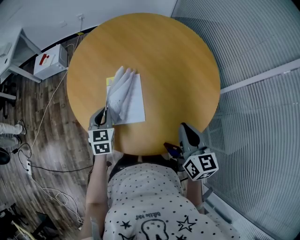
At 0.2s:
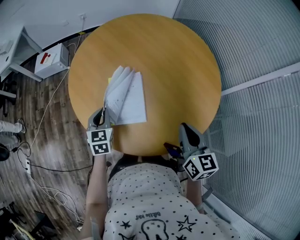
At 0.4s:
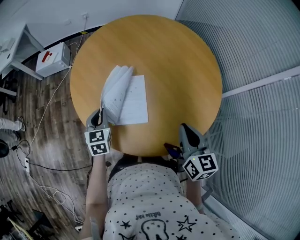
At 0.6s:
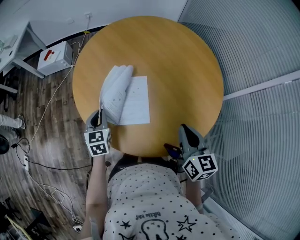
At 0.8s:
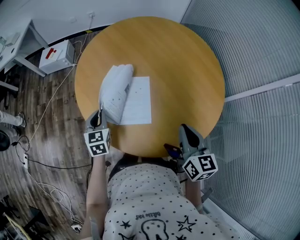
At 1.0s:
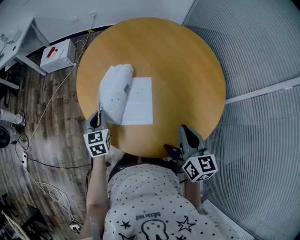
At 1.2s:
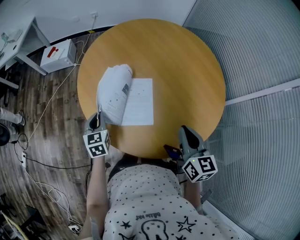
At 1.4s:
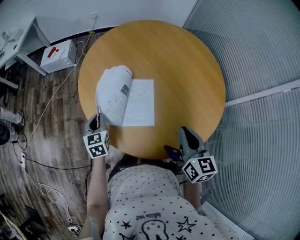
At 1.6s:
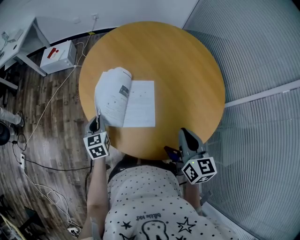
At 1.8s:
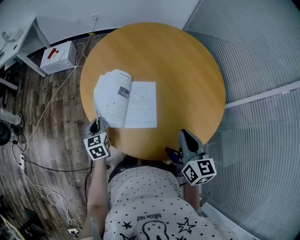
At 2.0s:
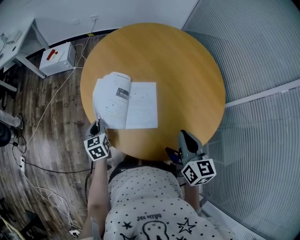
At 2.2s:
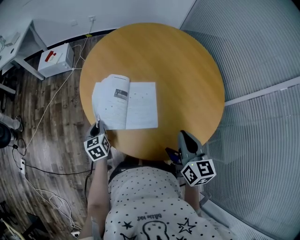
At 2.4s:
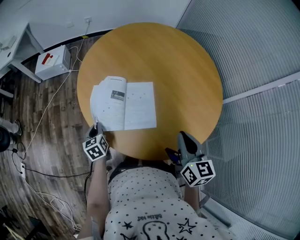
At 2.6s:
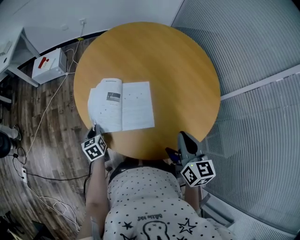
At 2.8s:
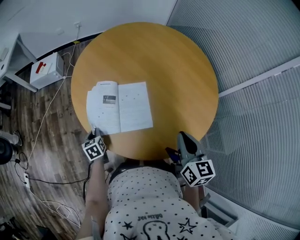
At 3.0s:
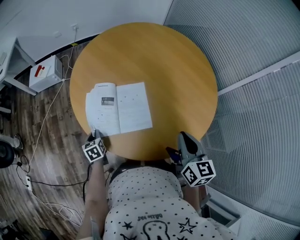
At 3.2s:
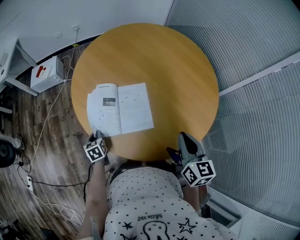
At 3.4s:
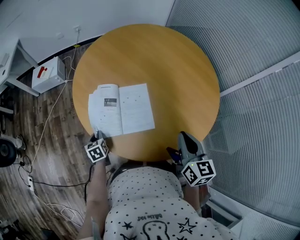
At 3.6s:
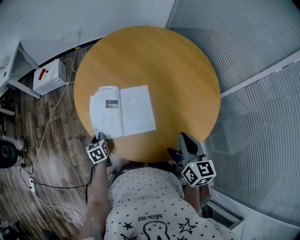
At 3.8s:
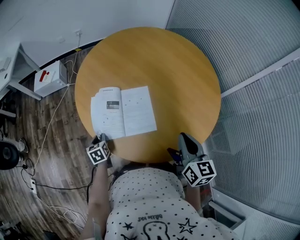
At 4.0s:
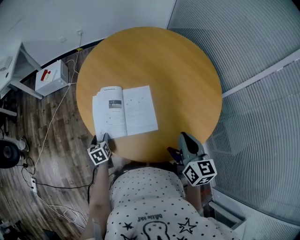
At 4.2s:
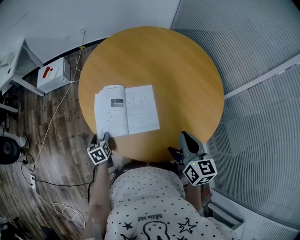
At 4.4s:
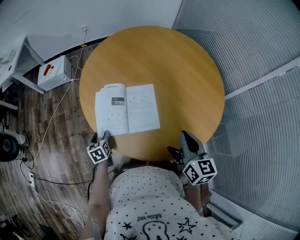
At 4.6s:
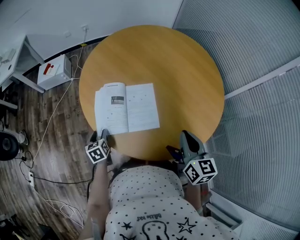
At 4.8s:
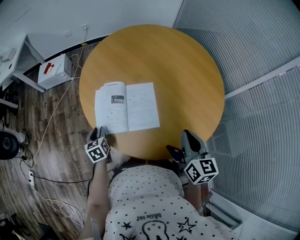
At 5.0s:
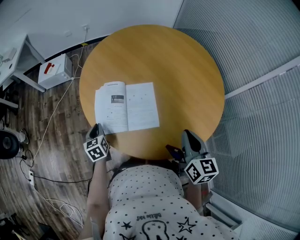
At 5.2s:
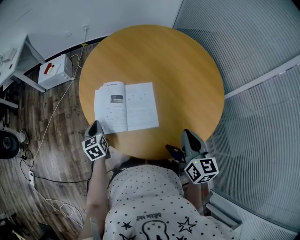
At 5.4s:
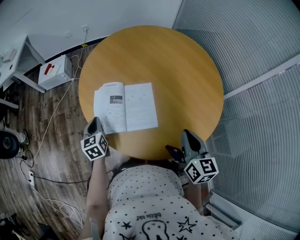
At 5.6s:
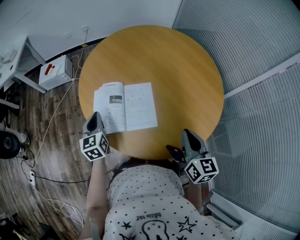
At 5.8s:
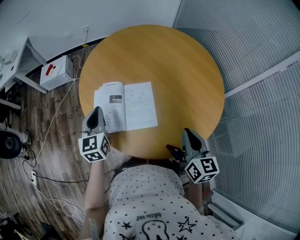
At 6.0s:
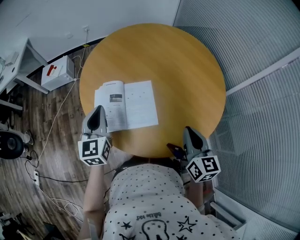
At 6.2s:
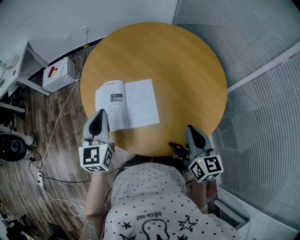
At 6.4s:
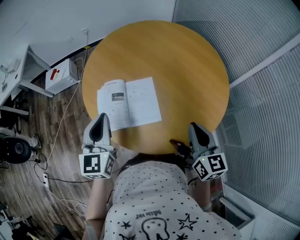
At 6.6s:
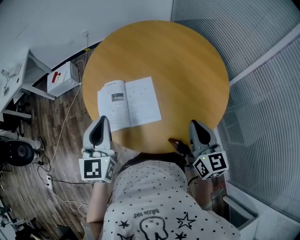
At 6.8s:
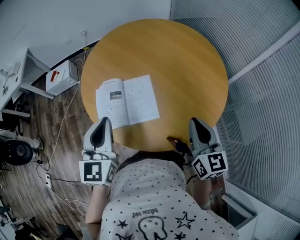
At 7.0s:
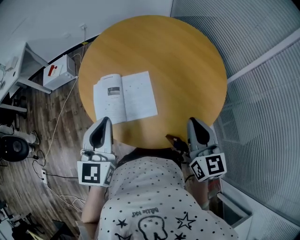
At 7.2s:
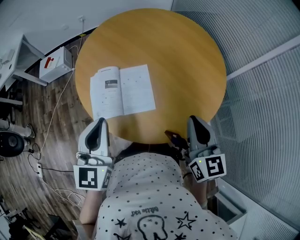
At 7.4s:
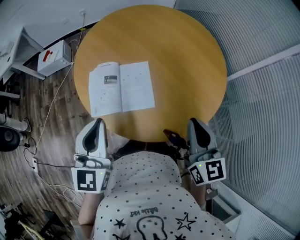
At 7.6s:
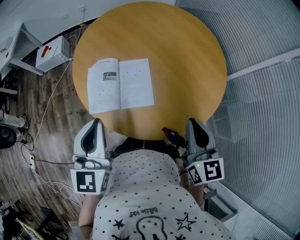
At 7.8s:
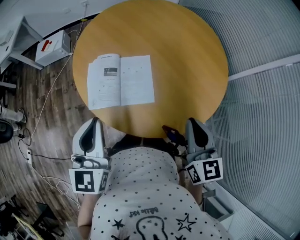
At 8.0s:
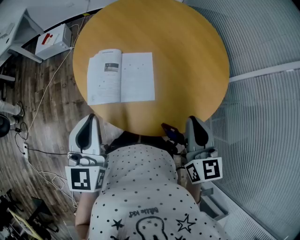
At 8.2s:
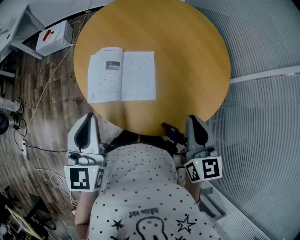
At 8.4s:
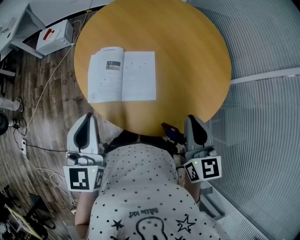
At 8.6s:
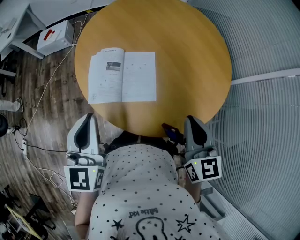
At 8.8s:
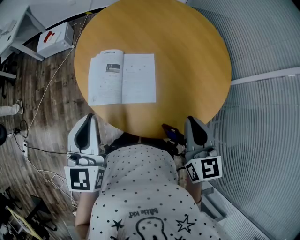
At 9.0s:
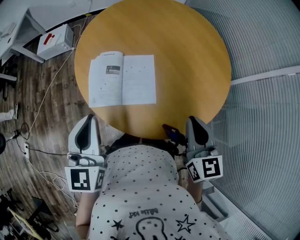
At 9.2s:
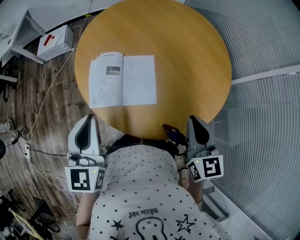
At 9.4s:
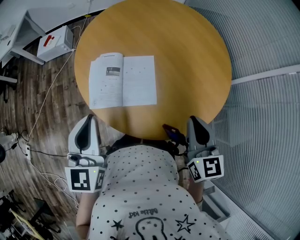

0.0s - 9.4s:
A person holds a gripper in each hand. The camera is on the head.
0.0s - 1.6s: The right gripper travels to the left by some 5 cm. The left gripper moves to the left, approximately 10 cm.
1.6s - 3.2s: The left gripper travels downward by roughly 10 cm.
3.2s - 4.8s: The left gripper opens up.
4.8s - 6.2s: The left gripper heads upward and to the right, covering roughly 25 cm, points its fingers roughly 30 degrees further upward, and closes.
6.2s - 7.8s: The right gripper changes place by approximately 5 cm; the left gripper heads backward and upward, covering some 10 cm.
7.8s - 9.4s: There are only small adjustments of the grippers.

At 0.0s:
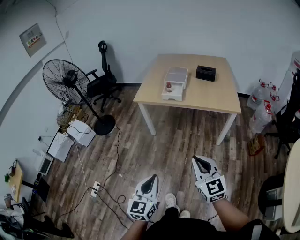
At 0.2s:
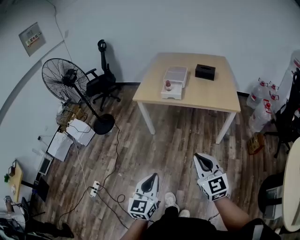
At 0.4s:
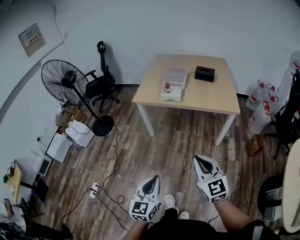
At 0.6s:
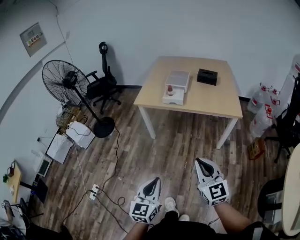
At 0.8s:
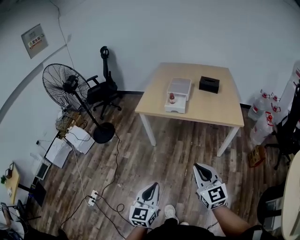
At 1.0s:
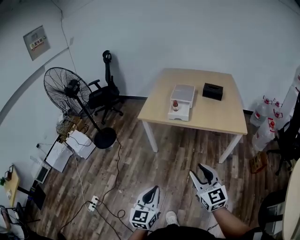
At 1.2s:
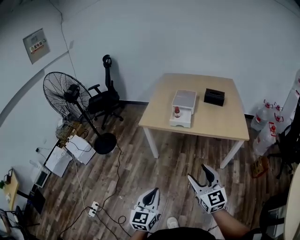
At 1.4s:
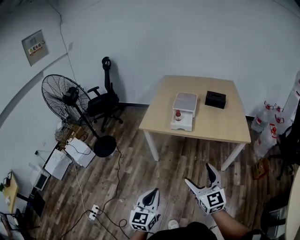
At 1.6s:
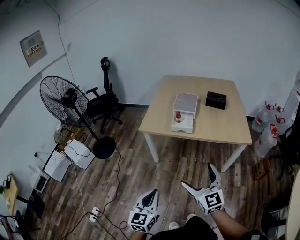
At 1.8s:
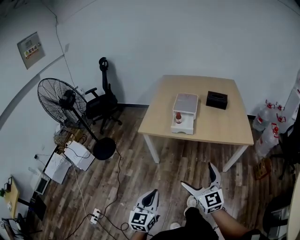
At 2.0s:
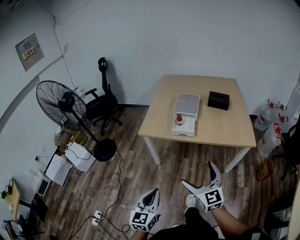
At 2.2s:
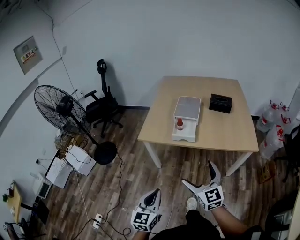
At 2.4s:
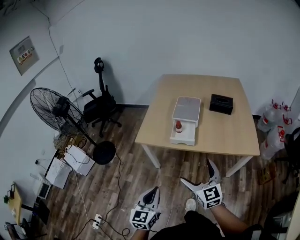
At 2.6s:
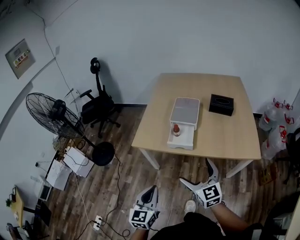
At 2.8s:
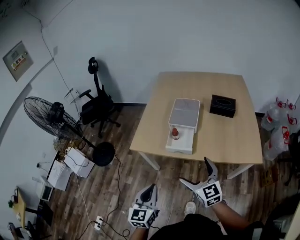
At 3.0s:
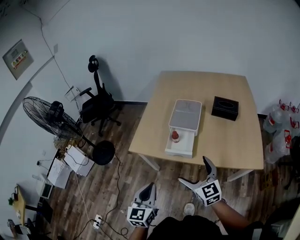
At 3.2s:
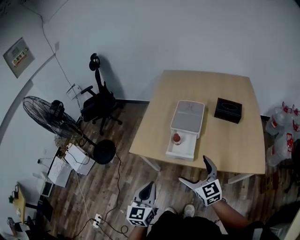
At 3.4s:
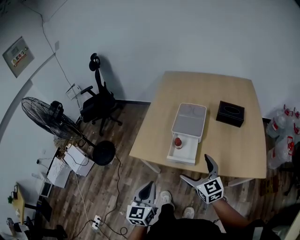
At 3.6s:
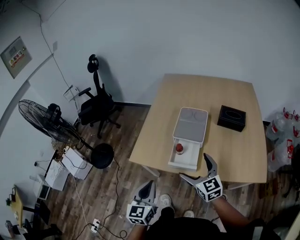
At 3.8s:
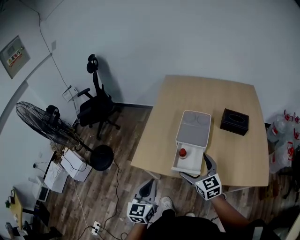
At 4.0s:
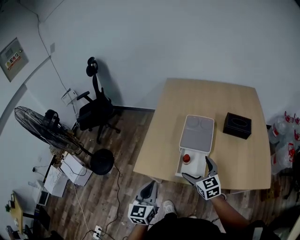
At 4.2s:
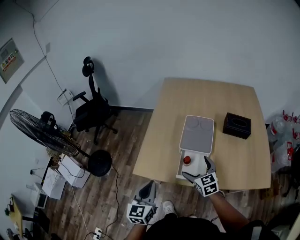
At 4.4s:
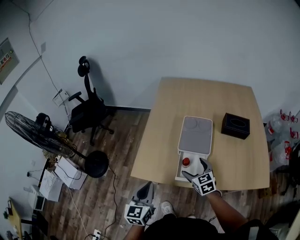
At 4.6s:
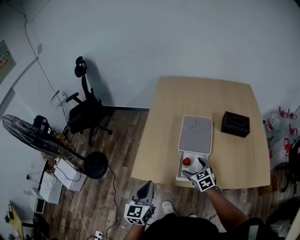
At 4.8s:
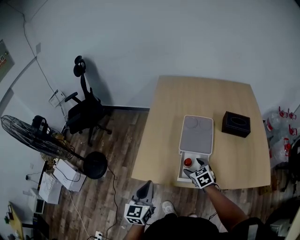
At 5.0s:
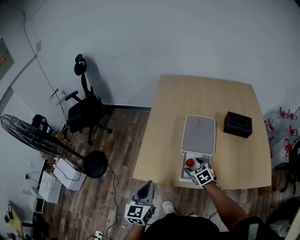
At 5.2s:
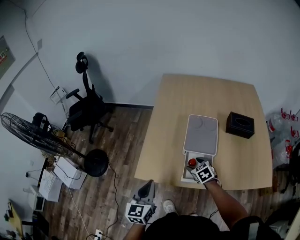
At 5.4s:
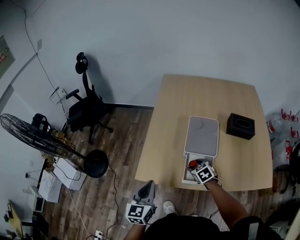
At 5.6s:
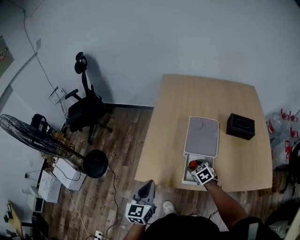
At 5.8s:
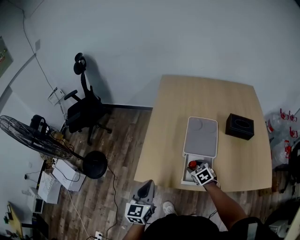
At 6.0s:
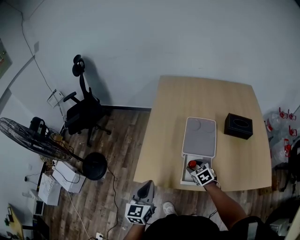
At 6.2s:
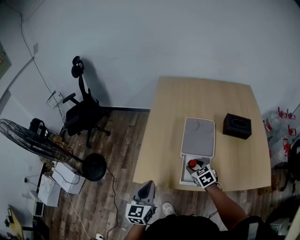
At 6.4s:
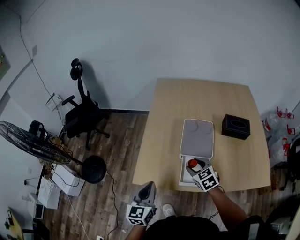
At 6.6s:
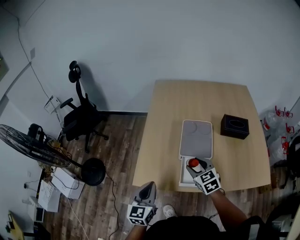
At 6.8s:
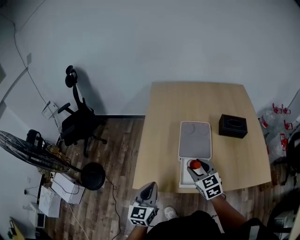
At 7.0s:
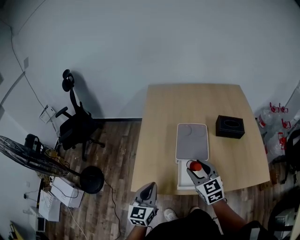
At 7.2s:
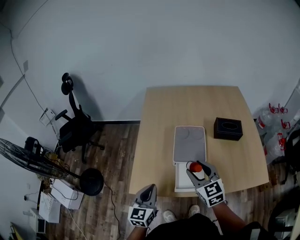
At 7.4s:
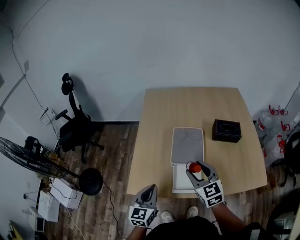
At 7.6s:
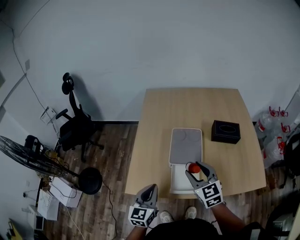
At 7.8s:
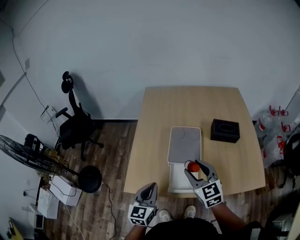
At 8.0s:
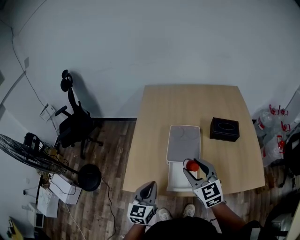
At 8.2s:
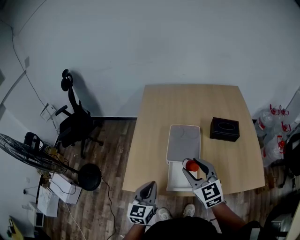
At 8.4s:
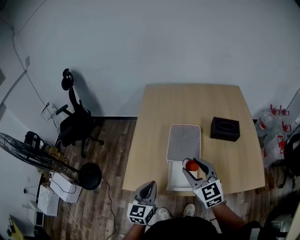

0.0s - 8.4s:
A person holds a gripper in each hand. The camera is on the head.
0.0s - 1.4s: Both grippers move forward, approximately 15 cm. The right gripper opens its fingers.
1.4s - 2.8s: Both grippers travel together forward, about 30 cm.
2.8s - 4.2s: Both grippers move forward, approximately 25 cm.
4.2s - 5.6s: The left gripper heads forward, covering roughly 5 cm. The right gripper shifts roughly 15 cm downward and forward, swivels some 30 degrees, and closes.
5.6s - 7.0s: The right gripper travels upward by some 20 cm, and tips its fingers upward by some 30 degrees.
7.0s - 8.4s: The right gripper is displaced upward by roughly 5 cm. The left gripper shifts roughly 5 cm to the right.

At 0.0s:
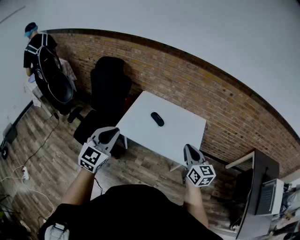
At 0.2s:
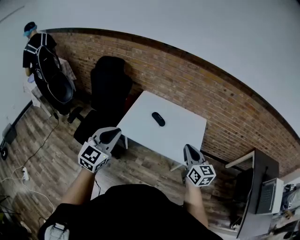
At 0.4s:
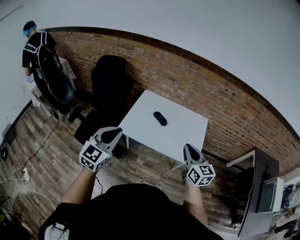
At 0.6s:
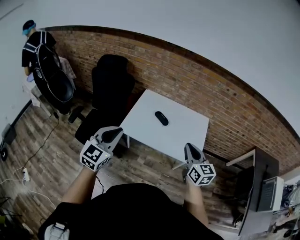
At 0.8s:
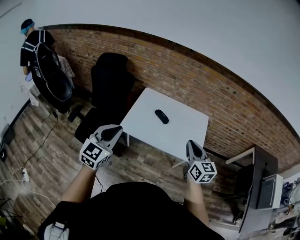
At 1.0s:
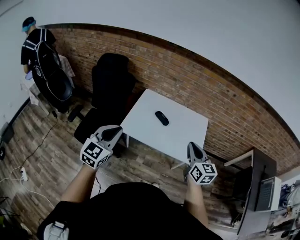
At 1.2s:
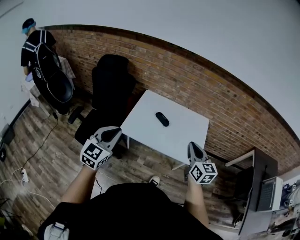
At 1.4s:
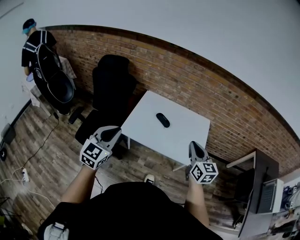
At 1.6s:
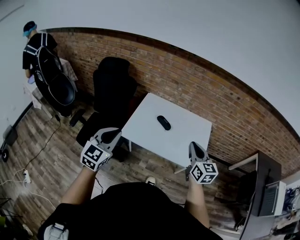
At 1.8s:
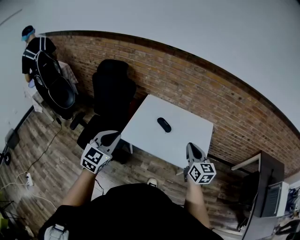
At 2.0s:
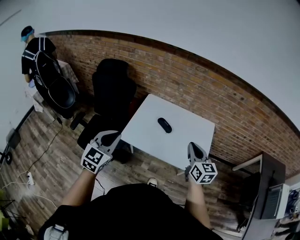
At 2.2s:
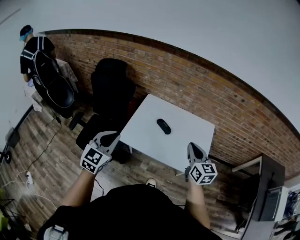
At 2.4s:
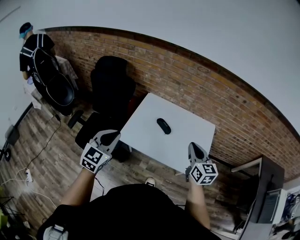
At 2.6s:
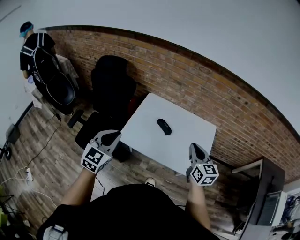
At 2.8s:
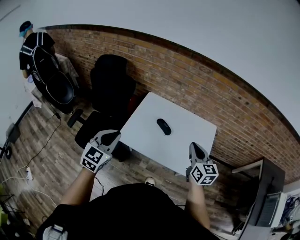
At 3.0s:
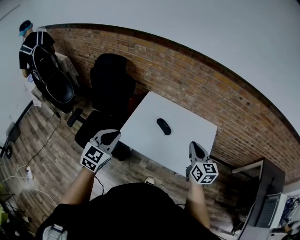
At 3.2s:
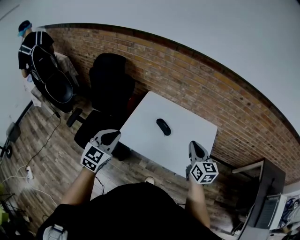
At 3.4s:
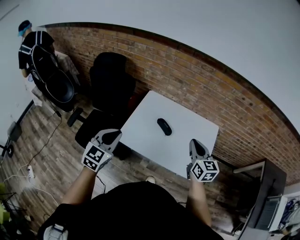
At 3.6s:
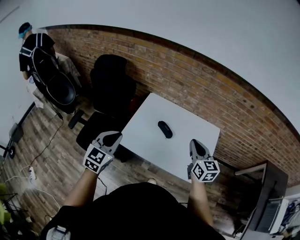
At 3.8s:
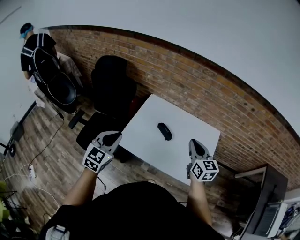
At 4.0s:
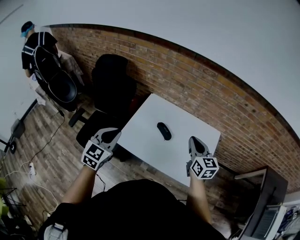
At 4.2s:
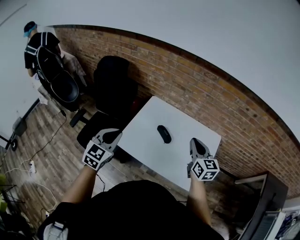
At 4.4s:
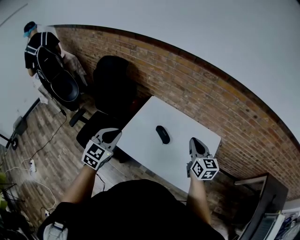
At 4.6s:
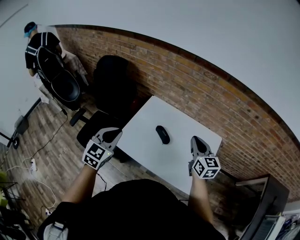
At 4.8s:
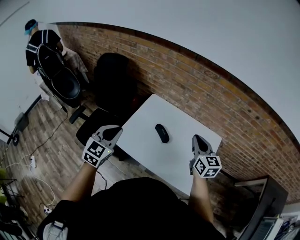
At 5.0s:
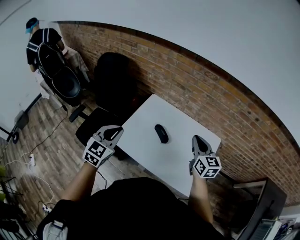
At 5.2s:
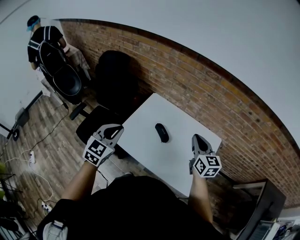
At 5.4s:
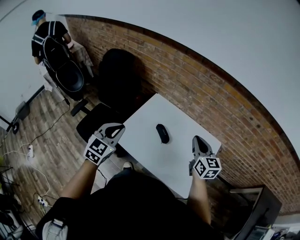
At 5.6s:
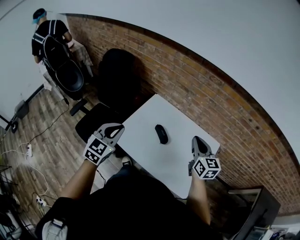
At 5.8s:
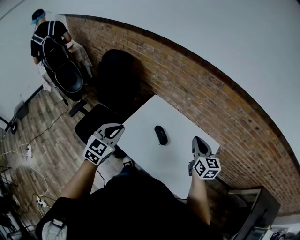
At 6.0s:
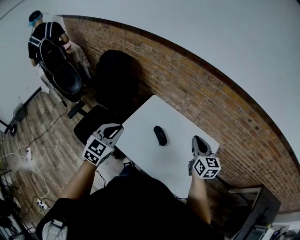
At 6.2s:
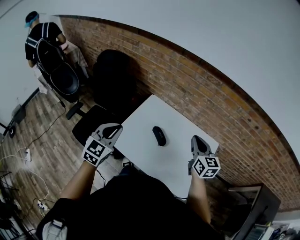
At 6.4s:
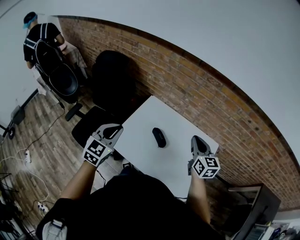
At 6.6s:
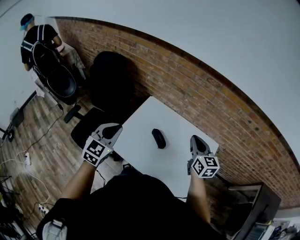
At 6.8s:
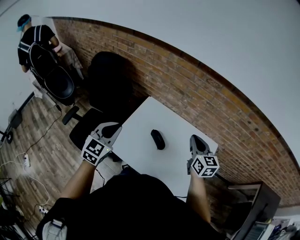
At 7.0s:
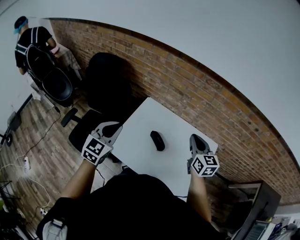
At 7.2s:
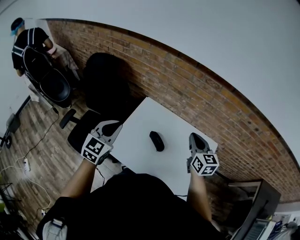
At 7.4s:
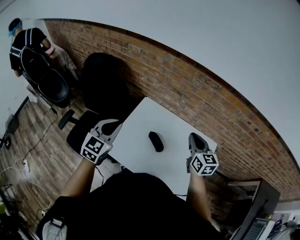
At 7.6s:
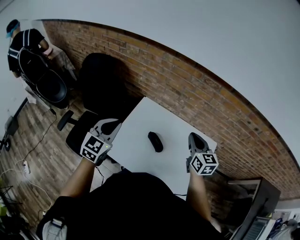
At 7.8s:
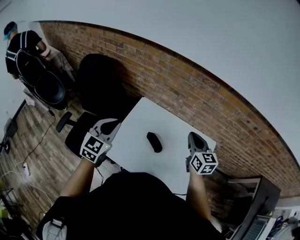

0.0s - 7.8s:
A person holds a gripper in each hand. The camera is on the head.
0.0s - 1.6s: The left gripper is displaced to the left by some 5 cm, while the right gripper shifts about 5 cm forward.
1.6s - 3.2s: The two grippers go about 15 cm forward.
3.2s - 4.6s: The right gripper is displaced forward by approximately 10 cm. Meanwhile the left gripper shifts about 10 cm forward and to the right.
4.6s - 6.2s: The grippers make only small movements.
6.2s - 7.8s: Both grippers move forward, some 10 cm.
